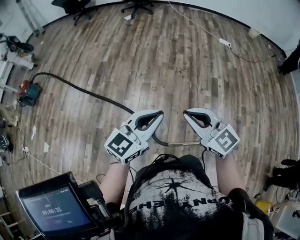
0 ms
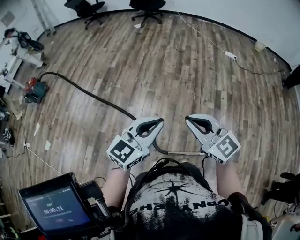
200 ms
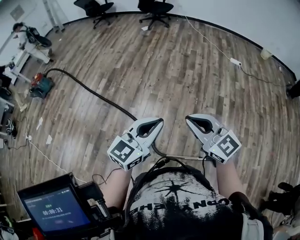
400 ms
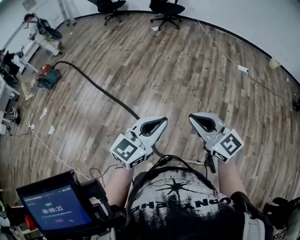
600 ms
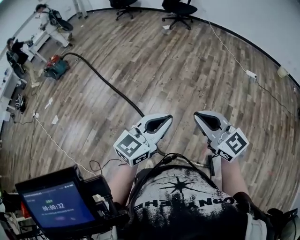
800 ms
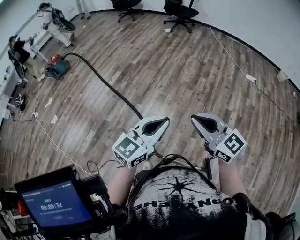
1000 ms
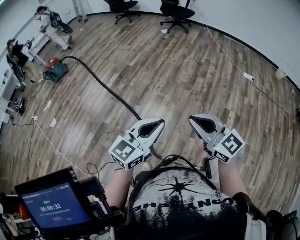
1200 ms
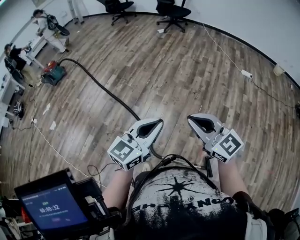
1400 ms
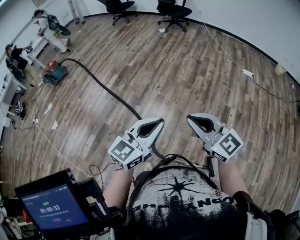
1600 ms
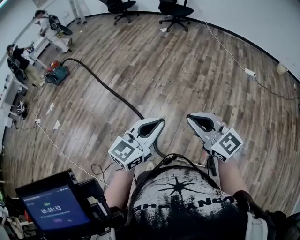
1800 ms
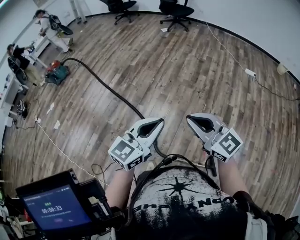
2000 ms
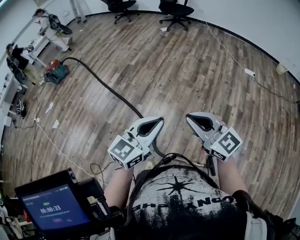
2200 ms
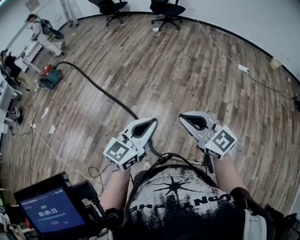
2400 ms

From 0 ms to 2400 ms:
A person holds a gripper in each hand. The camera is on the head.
From 0 ms to 1200 ms: The left gripper moves to the right, roughly 10 cm, and swivels approximately 20 degrees, while the right gripper travels to the right and upward by roughly 10 cm.
From 1200 ms to 2400 ms: The grippers stay close to where they were, moving slightly.

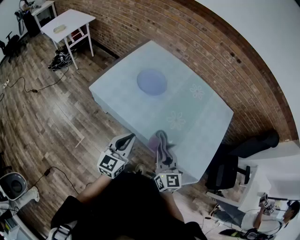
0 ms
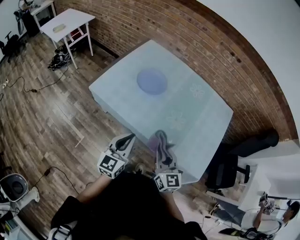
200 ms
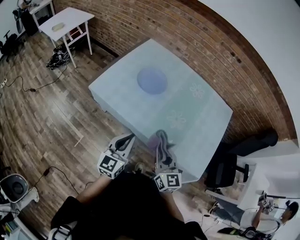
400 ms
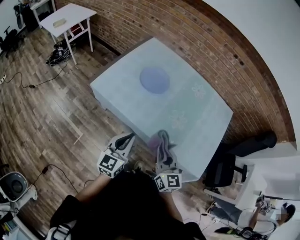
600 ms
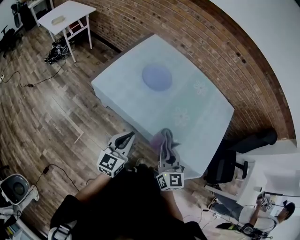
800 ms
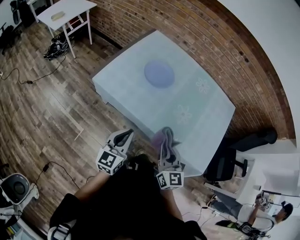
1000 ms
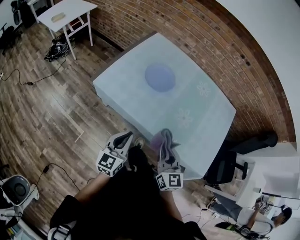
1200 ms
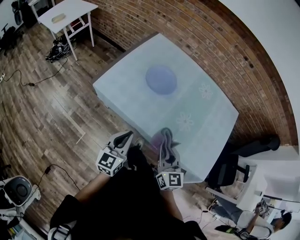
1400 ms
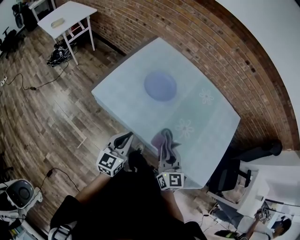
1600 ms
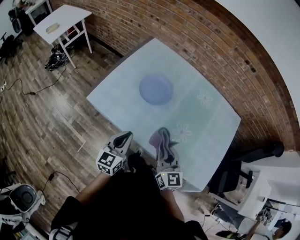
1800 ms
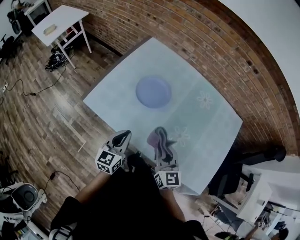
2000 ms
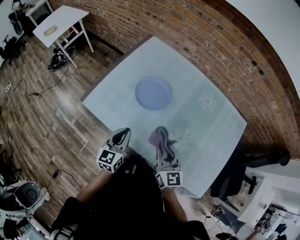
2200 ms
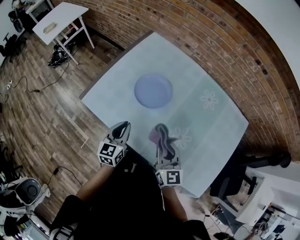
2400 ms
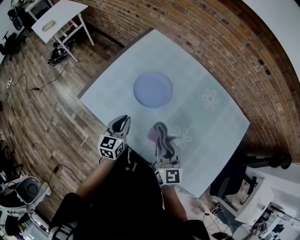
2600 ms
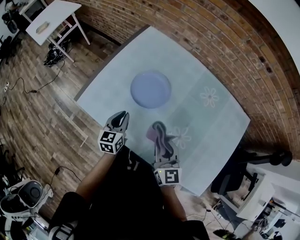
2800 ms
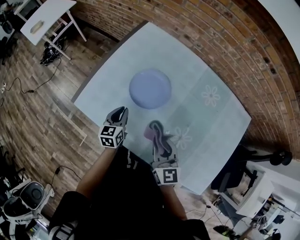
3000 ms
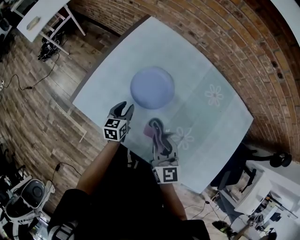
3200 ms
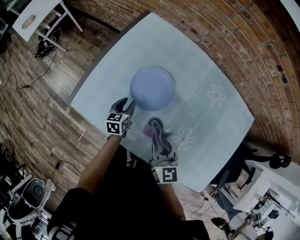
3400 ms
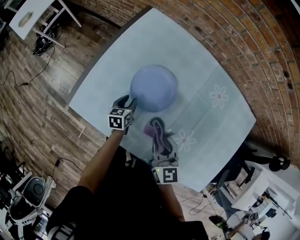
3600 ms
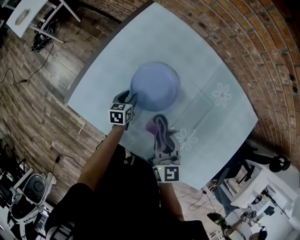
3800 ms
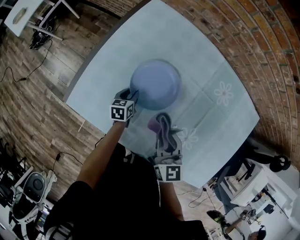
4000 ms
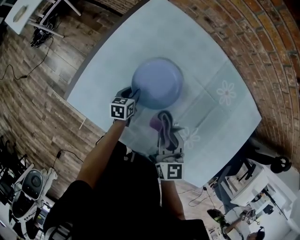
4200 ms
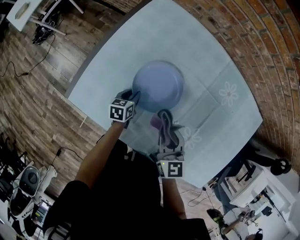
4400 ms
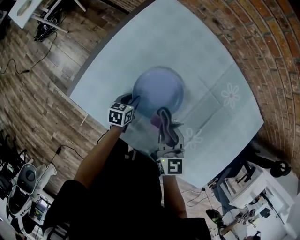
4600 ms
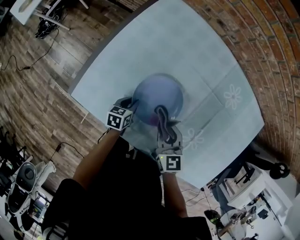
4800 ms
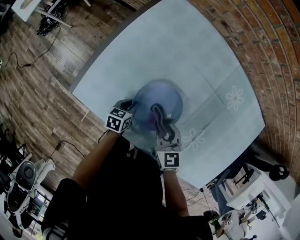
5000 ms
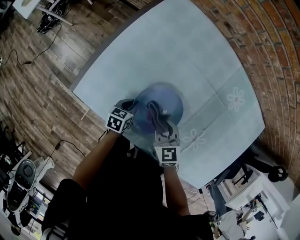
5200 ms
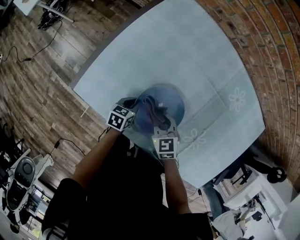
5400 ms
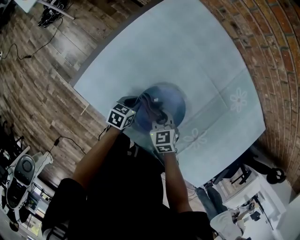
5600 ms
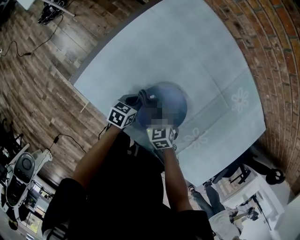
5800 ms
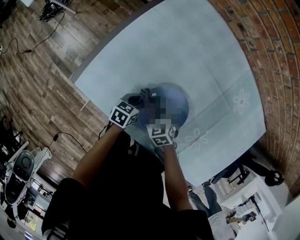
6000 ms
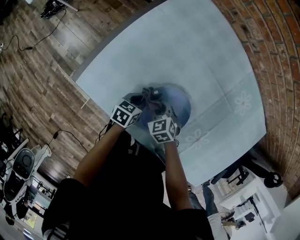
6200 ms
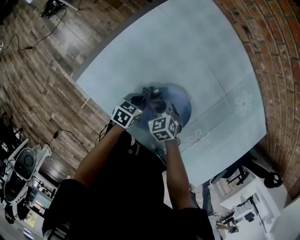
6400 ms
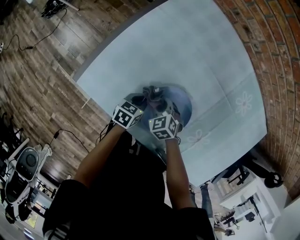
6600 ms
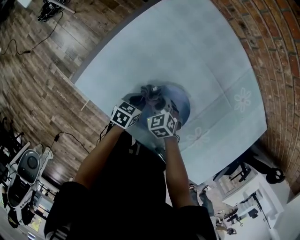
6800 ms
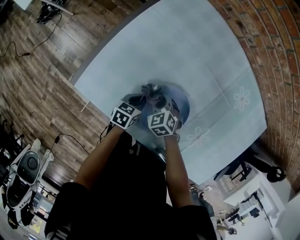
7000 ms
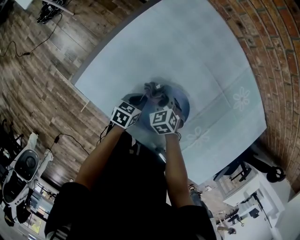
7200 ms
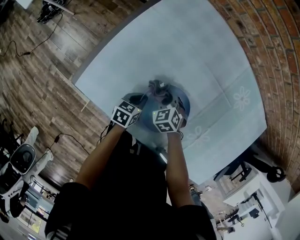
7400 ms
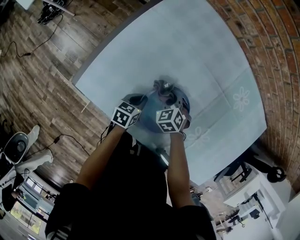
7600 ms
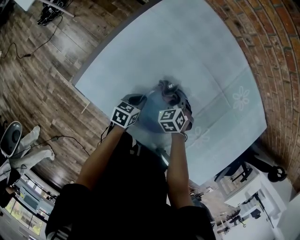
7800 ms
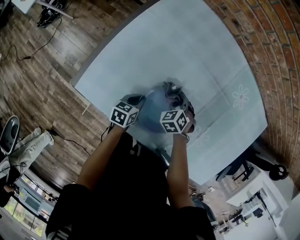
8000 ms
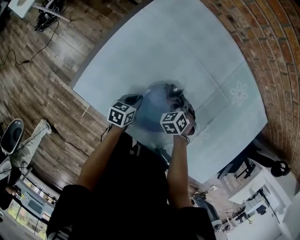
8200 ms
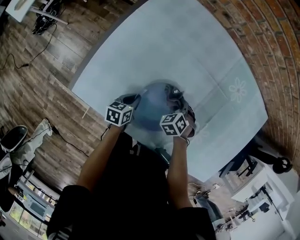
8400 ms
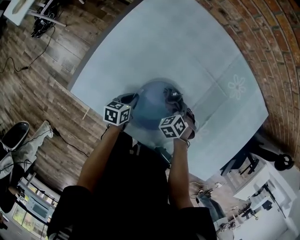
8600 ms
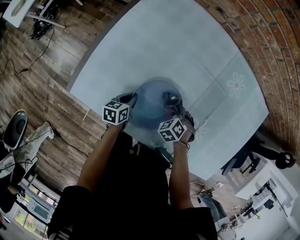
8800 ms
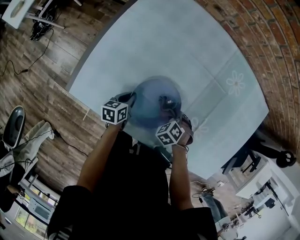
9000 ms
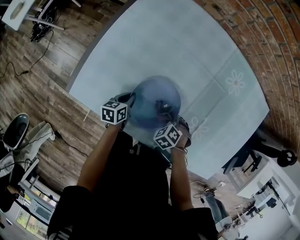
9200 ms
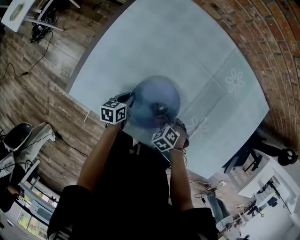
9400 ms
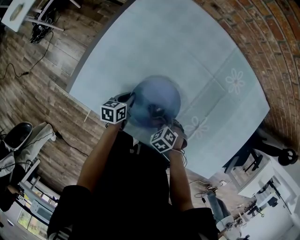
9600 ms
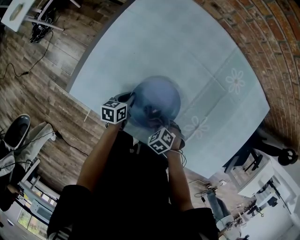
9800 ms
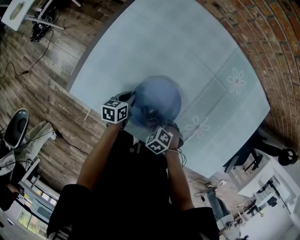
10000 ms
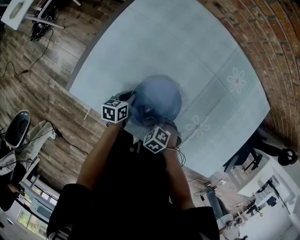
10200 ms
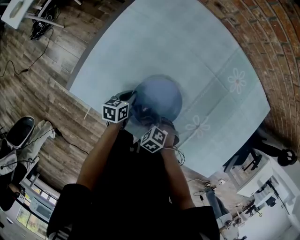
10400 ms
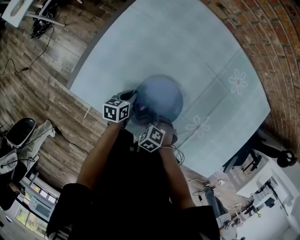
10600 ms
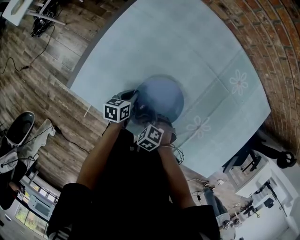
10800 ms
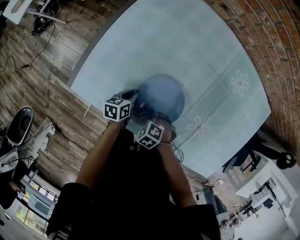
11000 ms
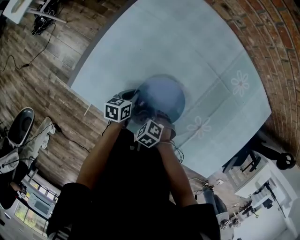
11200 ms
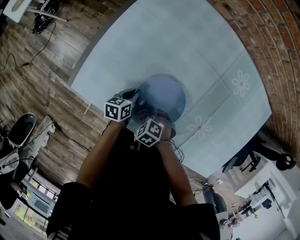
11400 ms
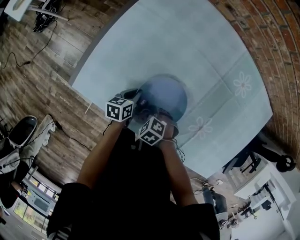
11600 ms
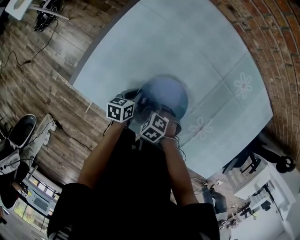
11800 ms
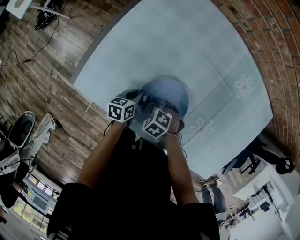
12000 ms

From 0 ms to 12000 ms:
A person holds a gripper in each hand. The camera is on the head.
From 0 ms to 1600 ms: The left gripper goes about 15 cm forward, to the left and downward. The right gripper moves forward and to the left, roughly 10 cm.
From 1600 ms to 3000 ms: The left gripper heads forward and downward, covering approximately 30 cm, and turns by approximately 20 degrees. Meanwhile the right gripper goes roughly 20 cm forward.
From 3000 ms to 4400 ms: The left gripper heads downward and forward, covering approximately 20 cm, rotates about 20 degrees, and opens its fingers. The right gripper moves forward and downward, about 15 cm.
From 4400 ms to 6000 ms: The right gripper heads downward and to the left, covering approximately 20 cm, and points its fingers roughly 30 degrees further downward. Meanwhile the left gripper goes approximately 5 cm backward.
From 6000 ms to 7600 ms: The right gripper moves forward, about 5 cm.
From 7600 ms to 9000 ms: The right gripper ends up approximately 15 cm from where it was.
From 9000 ms to 10400 ms: The right gripper changes place by about 10 cm.
From 10400 ms to 12000 ms: The right gripper shifts by roughly 10 cm.

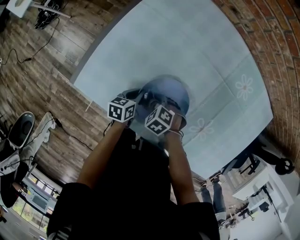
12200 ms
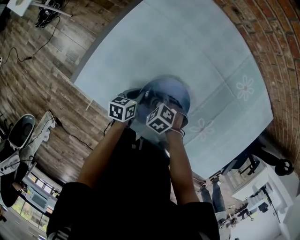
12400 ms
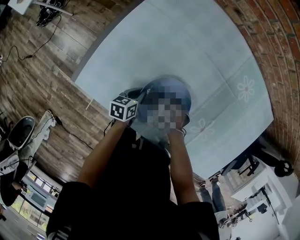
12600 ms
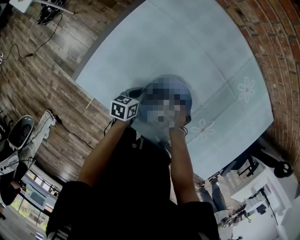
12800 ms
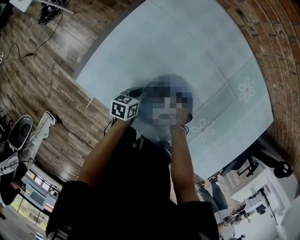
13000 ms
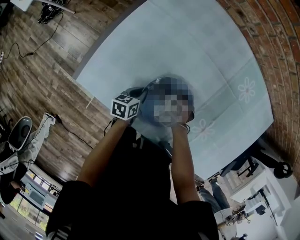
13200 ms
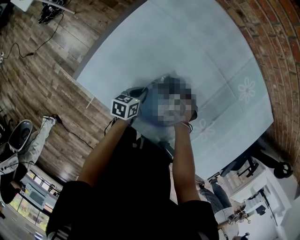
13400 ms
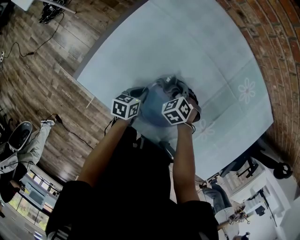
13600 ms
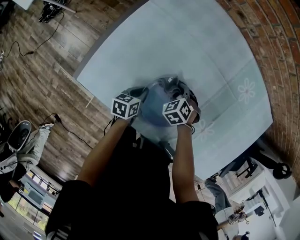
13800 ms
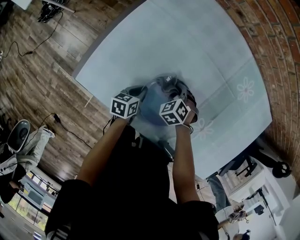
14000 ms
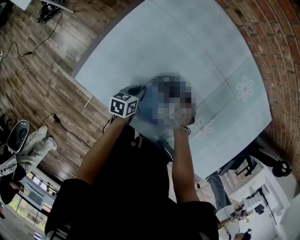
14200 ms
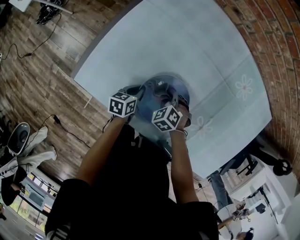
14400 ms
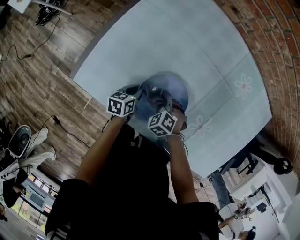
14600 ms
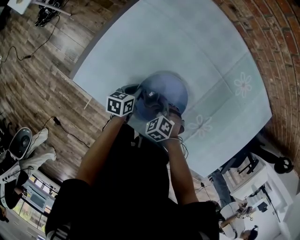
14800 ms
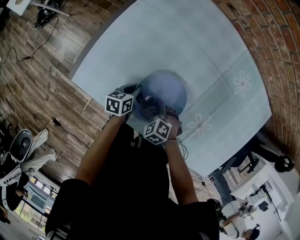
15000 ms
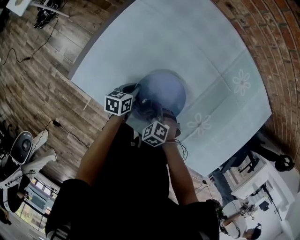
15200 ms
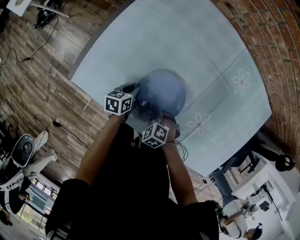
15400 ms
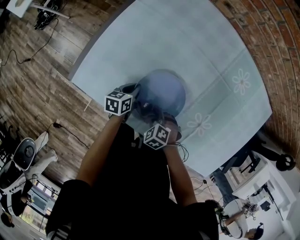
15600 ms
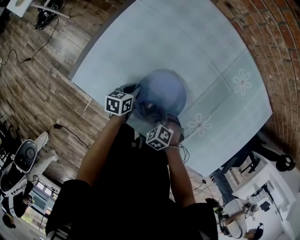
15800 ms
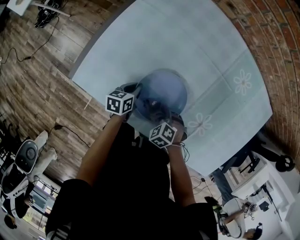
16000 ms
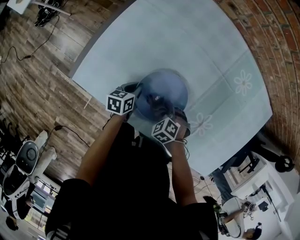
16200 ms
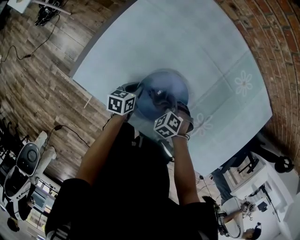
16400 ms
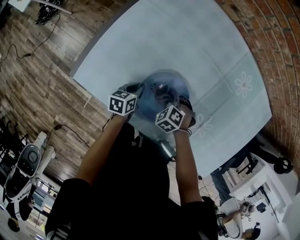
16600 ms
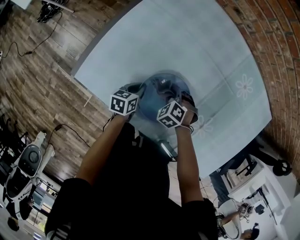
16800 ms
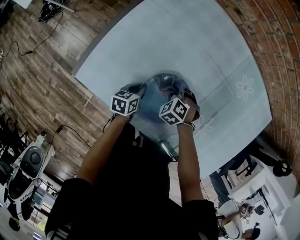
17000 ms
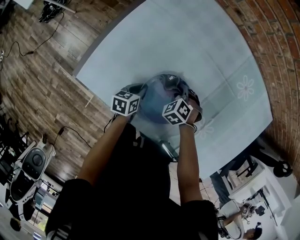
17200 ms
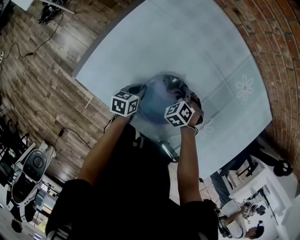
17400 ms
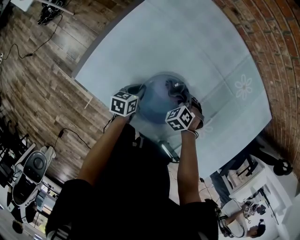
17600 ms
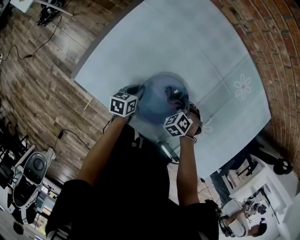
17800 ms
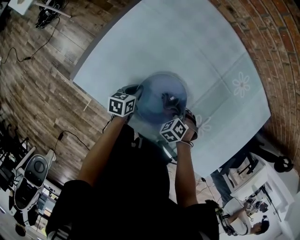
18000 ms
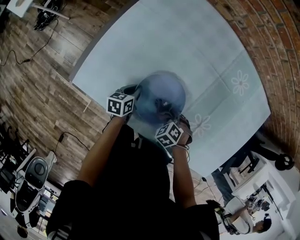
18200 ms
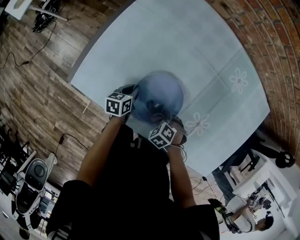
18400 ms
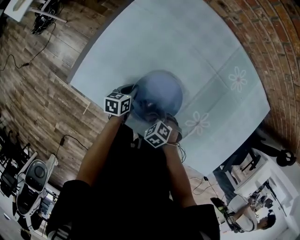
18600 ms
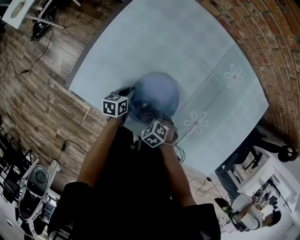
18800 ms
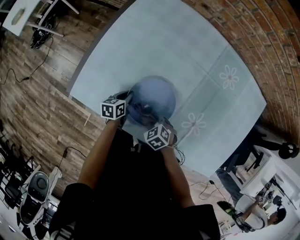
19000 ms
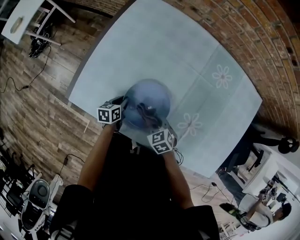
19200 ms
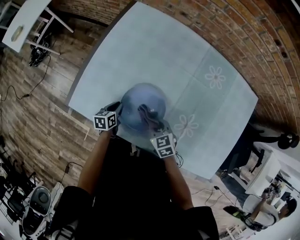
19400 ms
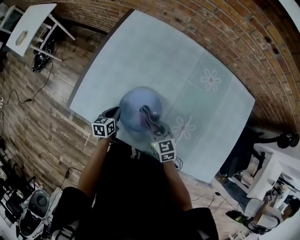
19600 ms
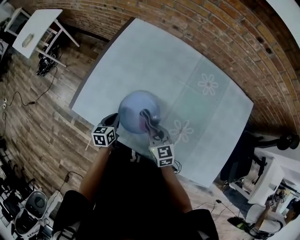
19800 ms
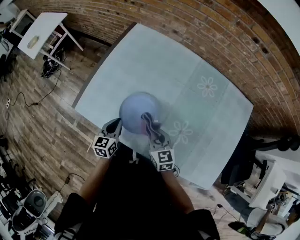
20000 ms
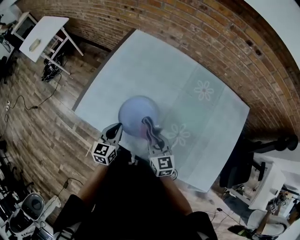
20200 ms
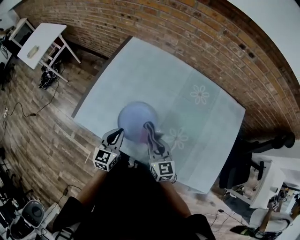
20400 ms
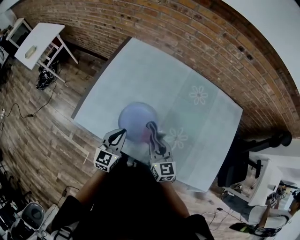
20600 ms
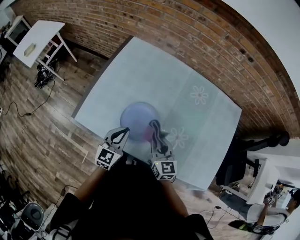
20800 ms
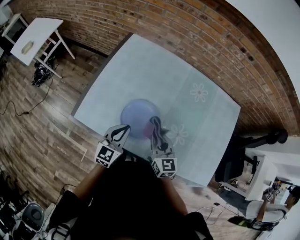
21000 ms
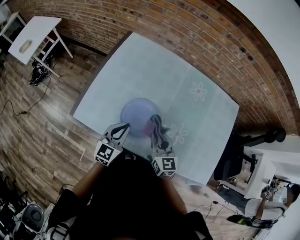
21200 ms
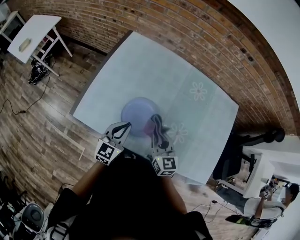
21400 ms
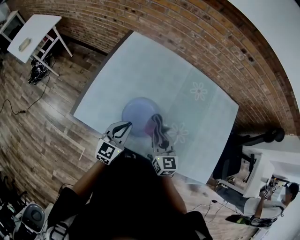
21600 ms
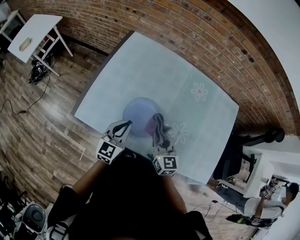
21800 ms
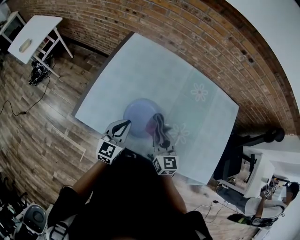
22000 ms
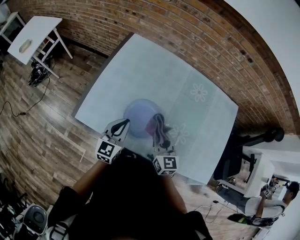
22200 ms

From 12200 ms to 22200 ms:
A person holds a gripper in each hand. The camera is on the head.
From 12200 ms to 13600 ms: The right gripper is displaced forward and to the right by approximately 10 cm.
From 13600 ms to 15000 ms: The right gripper moves backward, approximately 15 cm.
From 15000 ms to 16400 ms: The right gripper moves about 5 cm.
From 18000 ms to 19400 ms: The right gripper shifts some 10 cm upward, and points its fingers approximately 30 degrees further upward.
From 19400 ms to 20800 ms: The grippers both shift upward by about 20 cm. The right gripper swivels approximately 40 degrees. Meanwhile the left gripper points its fingers some 30 degrees further upward.
From 20800 ms to 22200 ms: The grippers make only small movements.
